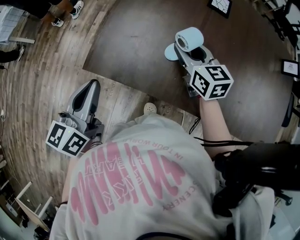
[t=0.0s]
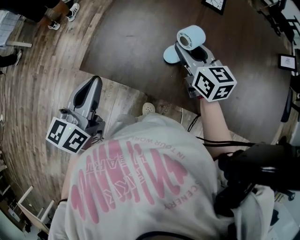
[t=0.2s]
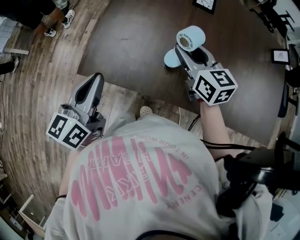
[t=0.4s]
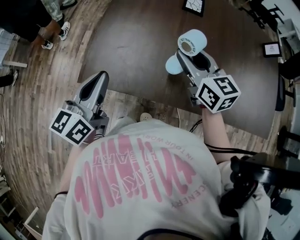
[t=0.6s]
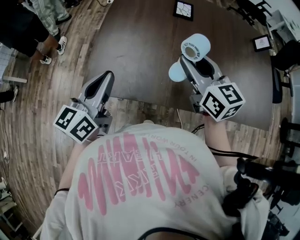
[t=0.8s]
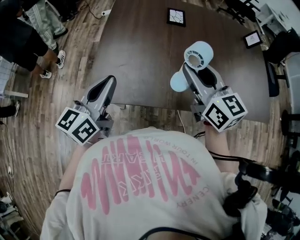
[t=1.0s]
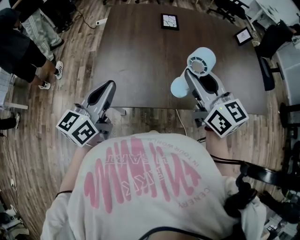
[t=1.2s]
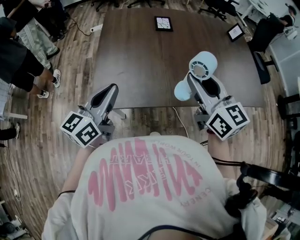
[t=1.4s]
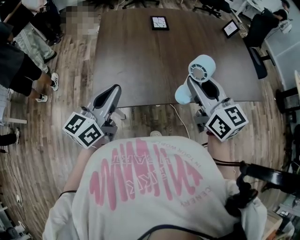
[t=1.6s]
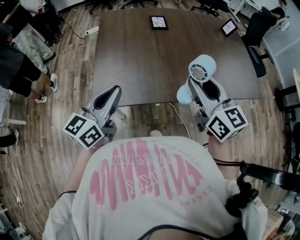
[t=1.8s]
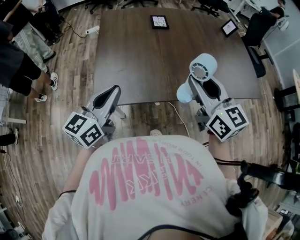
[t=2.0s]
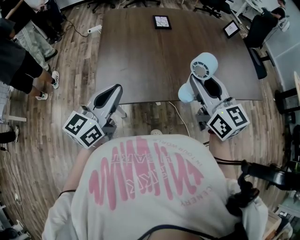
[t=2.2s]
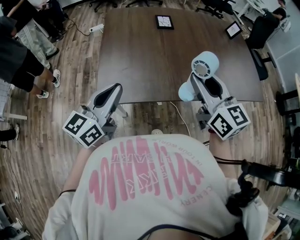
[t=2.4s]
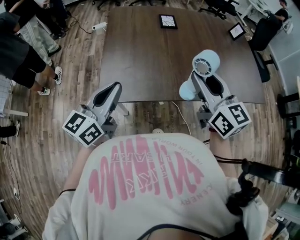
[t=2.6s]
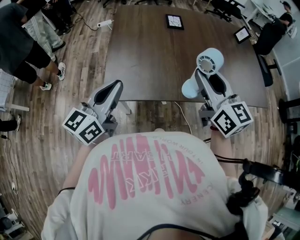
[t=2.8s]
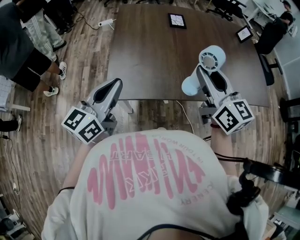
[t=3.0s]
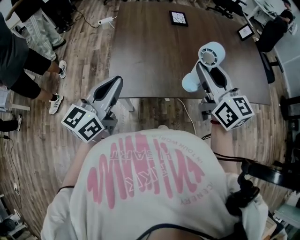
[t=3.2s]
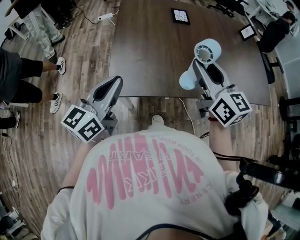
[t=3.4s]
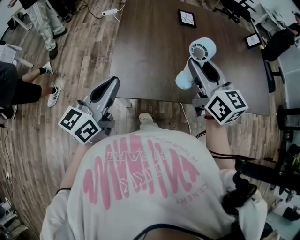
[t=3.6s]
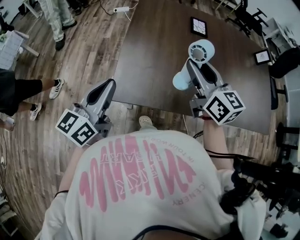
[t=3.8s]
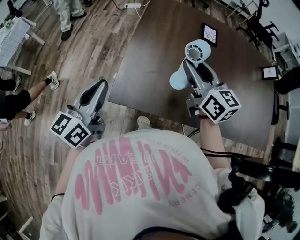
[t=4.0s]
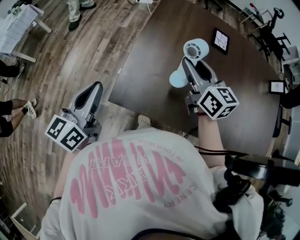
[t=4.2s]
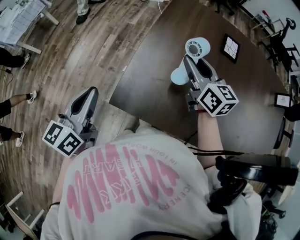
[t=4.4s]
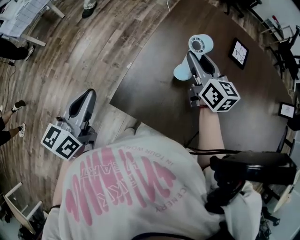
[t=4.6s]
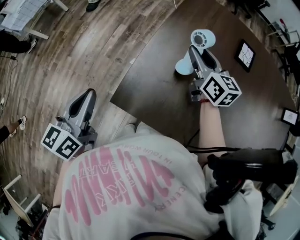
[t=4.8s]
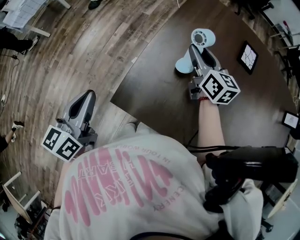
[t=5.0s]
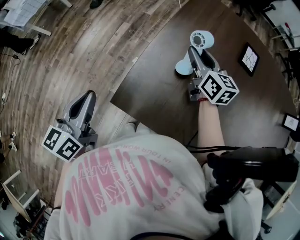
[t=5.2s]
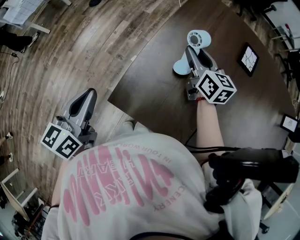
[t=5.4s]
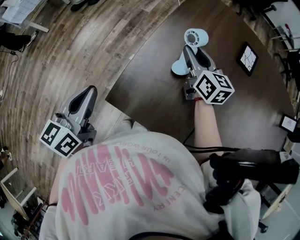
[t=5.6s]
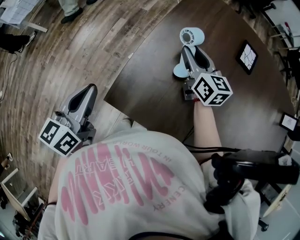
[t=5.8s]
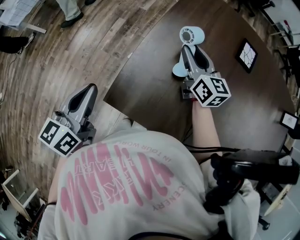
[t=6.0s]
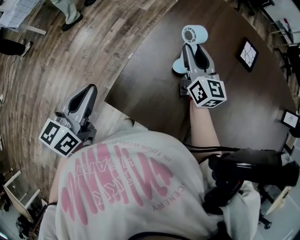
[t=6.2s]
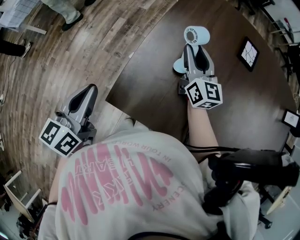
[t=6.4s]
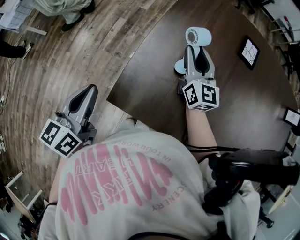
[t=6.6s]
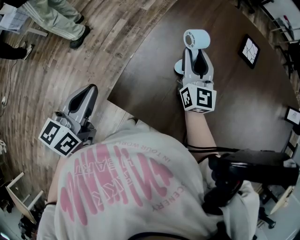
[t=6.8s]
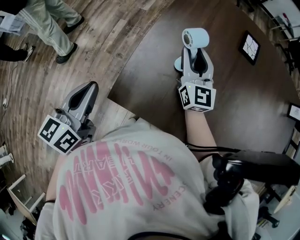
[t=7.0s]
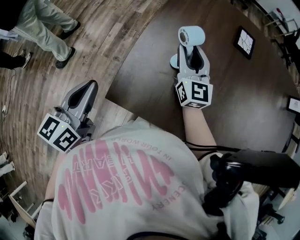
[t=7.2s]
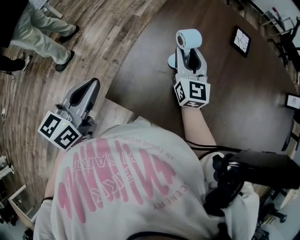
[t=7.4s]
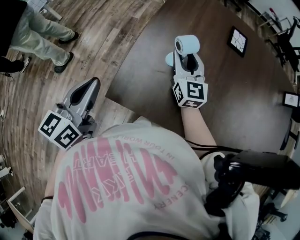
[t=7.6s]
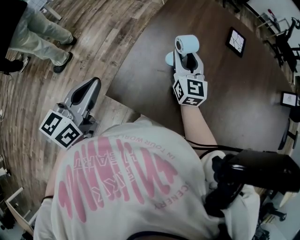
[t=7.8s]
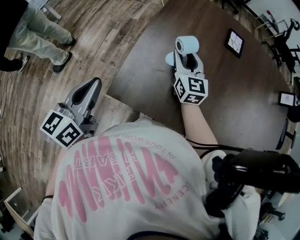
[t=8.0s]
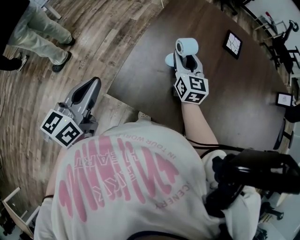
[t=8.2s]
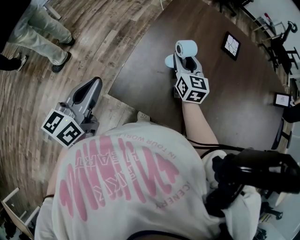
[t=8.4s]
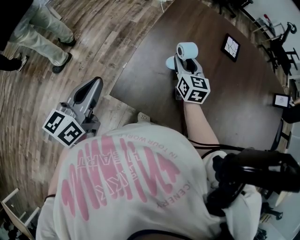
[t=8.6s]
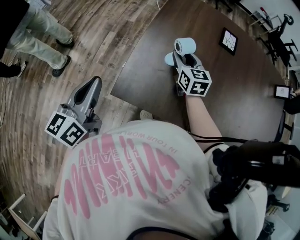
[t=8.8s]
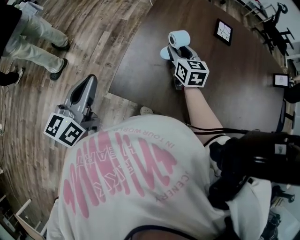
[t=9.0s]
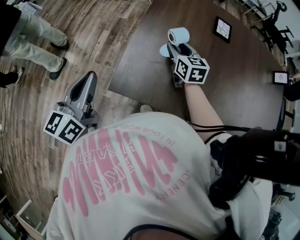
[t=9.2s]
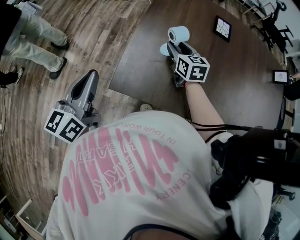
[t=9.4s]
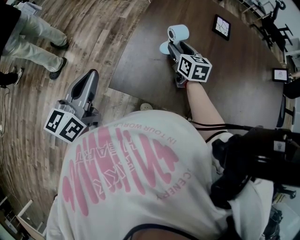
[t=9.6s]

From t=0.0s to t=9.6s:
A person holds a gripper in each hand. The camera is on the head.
From t=0.0s to t=1.6s: The right gripper changes place by roughly 30 cm, and rotates approximately 30 degrees, while the left gripper is displaced upward by roughly 10 cm, and swivels some 40 degrees.
From t=1.6s to t=3.2s: The left gripper is displaced to the left by about 5 cm, while the right gripper ends up roughly 5 cm from where it was.
From t=3.2s to t=4.8s: The right gripper changes place by about 40 cm, and swivels roughly 30 degrees, while the left gripper moves some 15 cm, and turns by about 40 degrees.
From t=4.8s to t=6.4s: The grippers move only a little.
From t=6.4s to t=8.0s: The right gripper travels backward by approximately 5 cm.
From t=8.0s to t=9.6s: The right gripper turns by roughly 20 degrees.

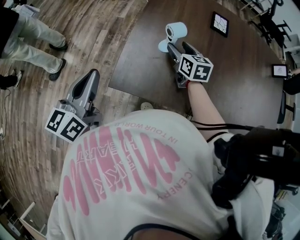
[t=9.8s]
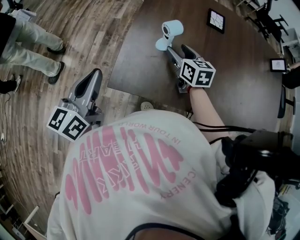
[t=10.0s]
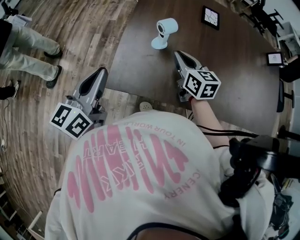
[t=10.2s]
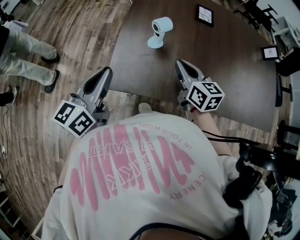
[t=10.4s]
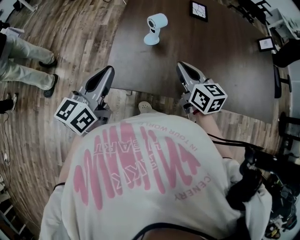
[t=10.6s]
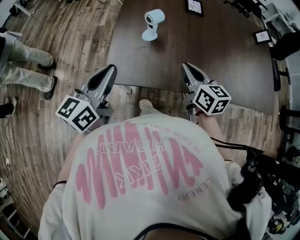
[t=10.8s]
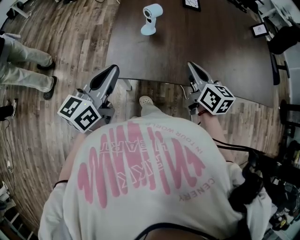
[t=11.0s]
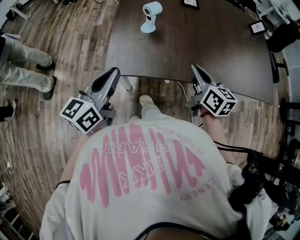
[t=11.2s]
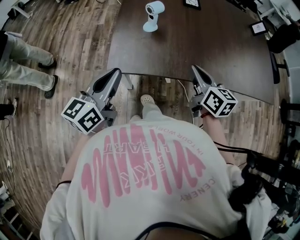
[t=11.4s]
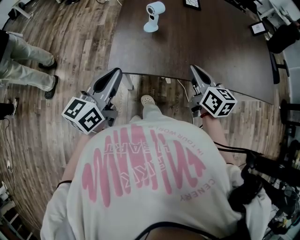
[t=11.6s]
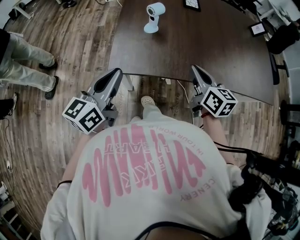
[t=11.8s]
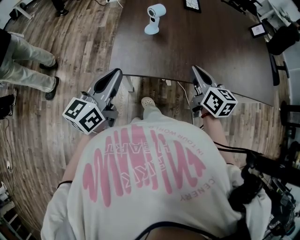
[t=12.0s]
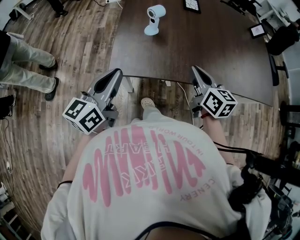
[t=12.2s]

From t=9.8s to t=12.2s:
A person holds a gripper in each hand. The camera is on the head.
From t=9.8s to t=11.0s: The right gripper moves backward, about 25 cm, and closes up, while the left gripper heads to the right and backward, covering some 10 cm, and turns by approximately 20 degrees.
From t=11.0s to t=12.2s: There are only small adjustments of the grippers.

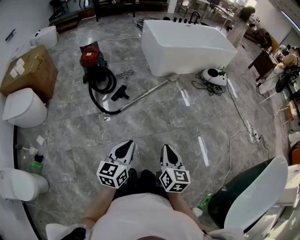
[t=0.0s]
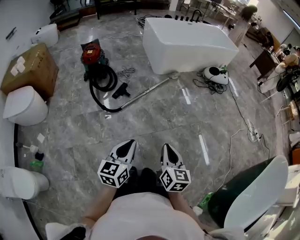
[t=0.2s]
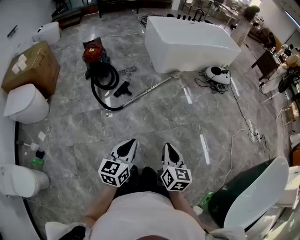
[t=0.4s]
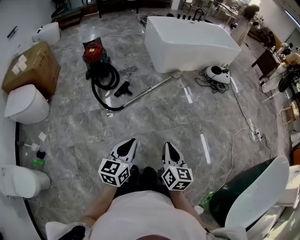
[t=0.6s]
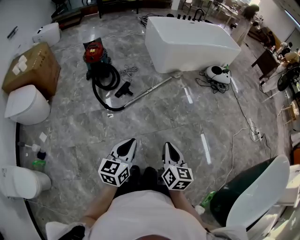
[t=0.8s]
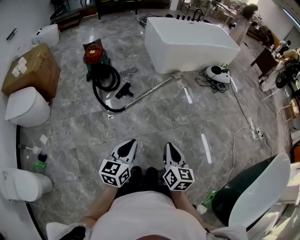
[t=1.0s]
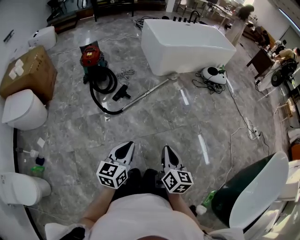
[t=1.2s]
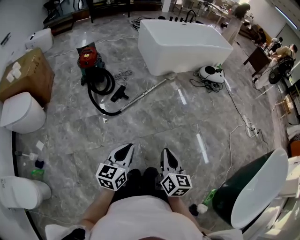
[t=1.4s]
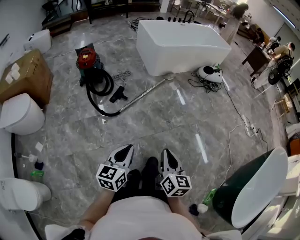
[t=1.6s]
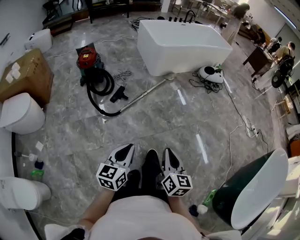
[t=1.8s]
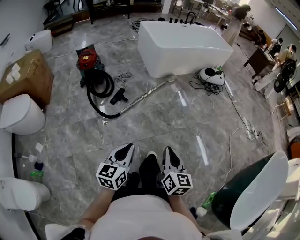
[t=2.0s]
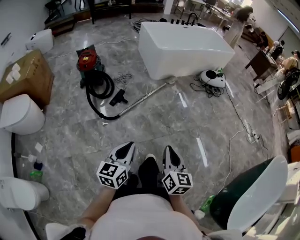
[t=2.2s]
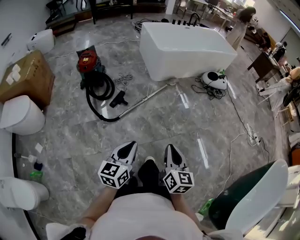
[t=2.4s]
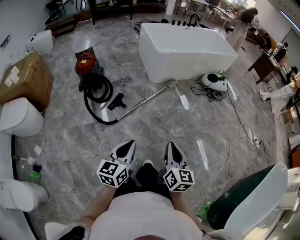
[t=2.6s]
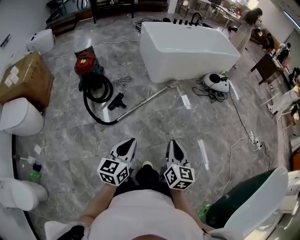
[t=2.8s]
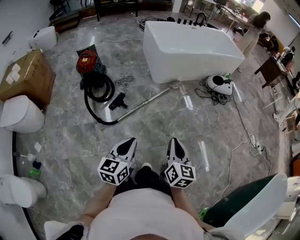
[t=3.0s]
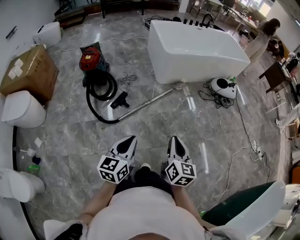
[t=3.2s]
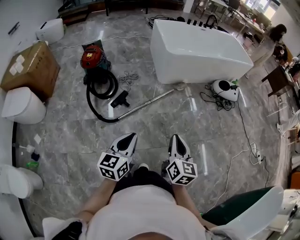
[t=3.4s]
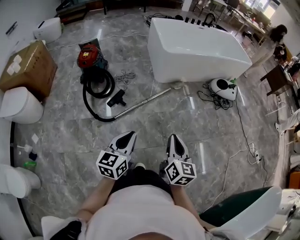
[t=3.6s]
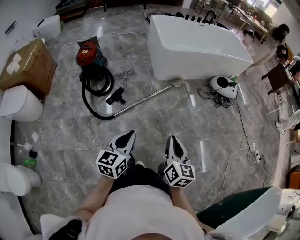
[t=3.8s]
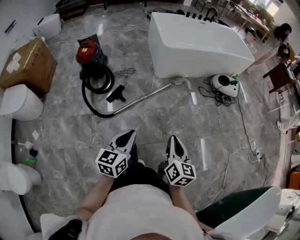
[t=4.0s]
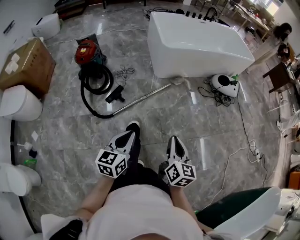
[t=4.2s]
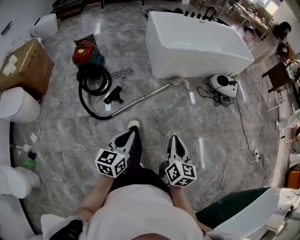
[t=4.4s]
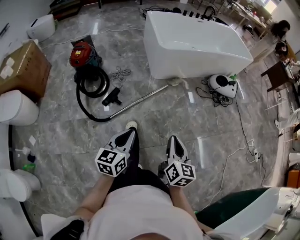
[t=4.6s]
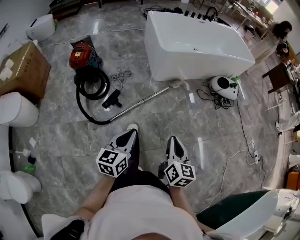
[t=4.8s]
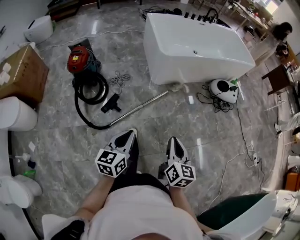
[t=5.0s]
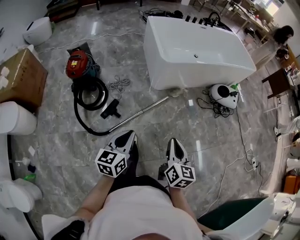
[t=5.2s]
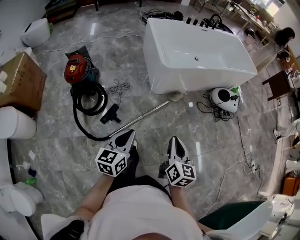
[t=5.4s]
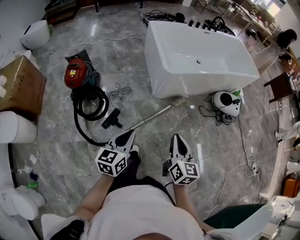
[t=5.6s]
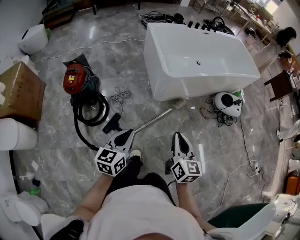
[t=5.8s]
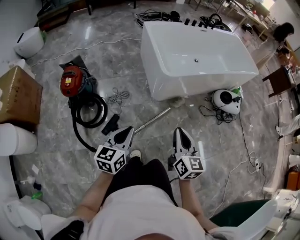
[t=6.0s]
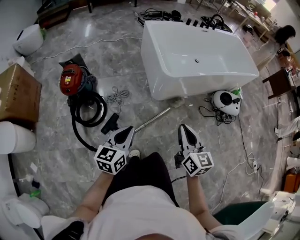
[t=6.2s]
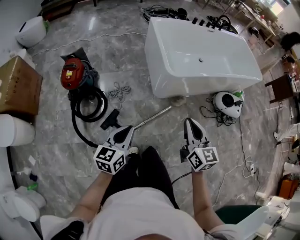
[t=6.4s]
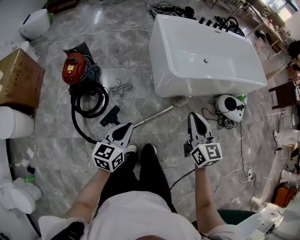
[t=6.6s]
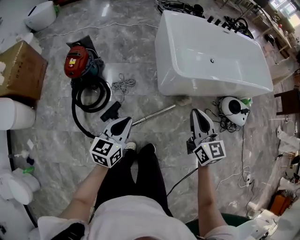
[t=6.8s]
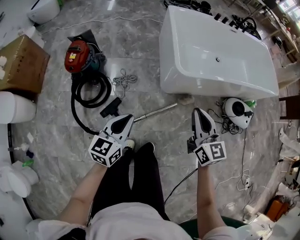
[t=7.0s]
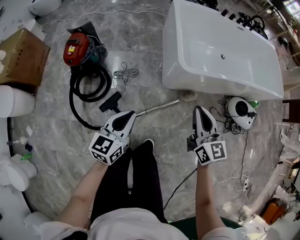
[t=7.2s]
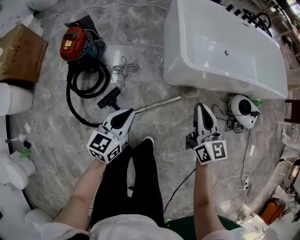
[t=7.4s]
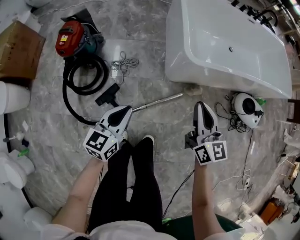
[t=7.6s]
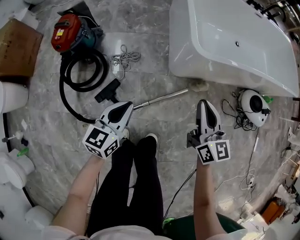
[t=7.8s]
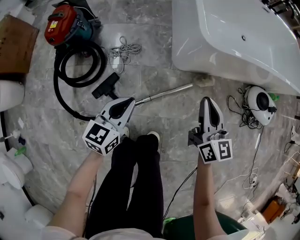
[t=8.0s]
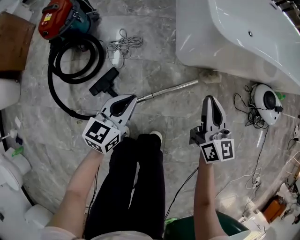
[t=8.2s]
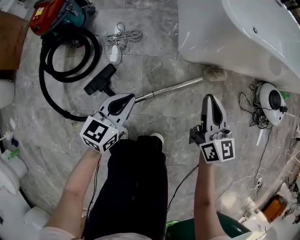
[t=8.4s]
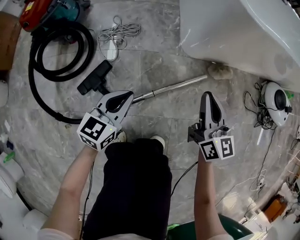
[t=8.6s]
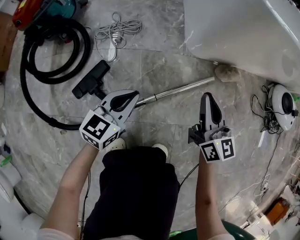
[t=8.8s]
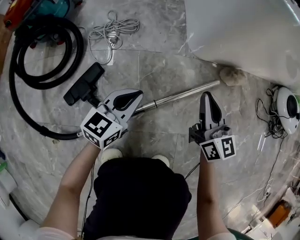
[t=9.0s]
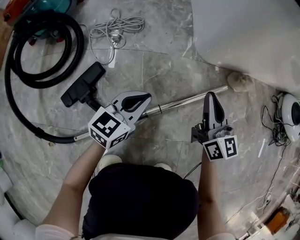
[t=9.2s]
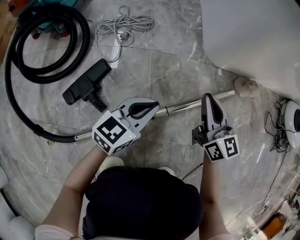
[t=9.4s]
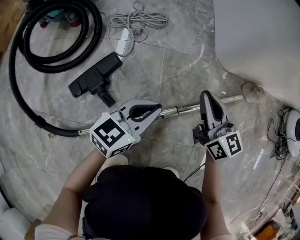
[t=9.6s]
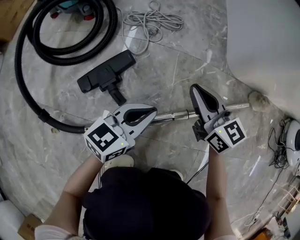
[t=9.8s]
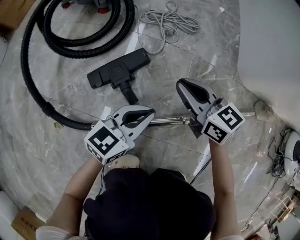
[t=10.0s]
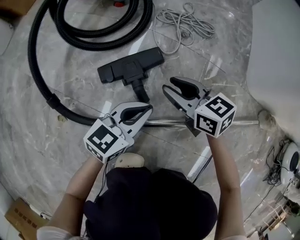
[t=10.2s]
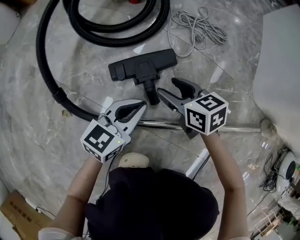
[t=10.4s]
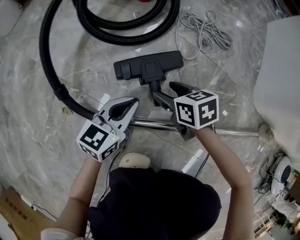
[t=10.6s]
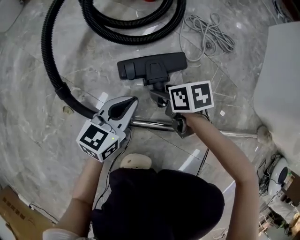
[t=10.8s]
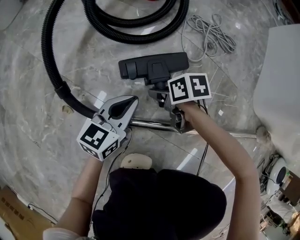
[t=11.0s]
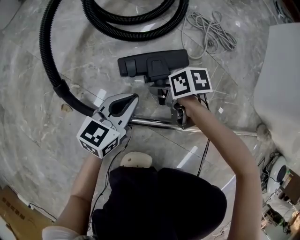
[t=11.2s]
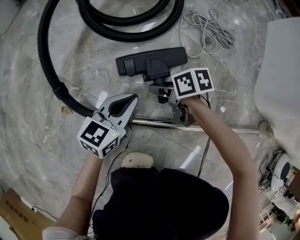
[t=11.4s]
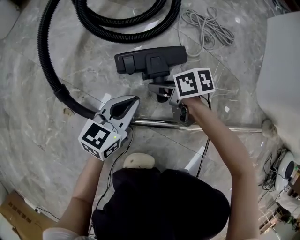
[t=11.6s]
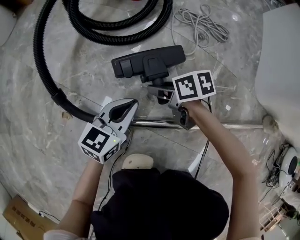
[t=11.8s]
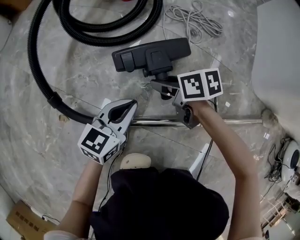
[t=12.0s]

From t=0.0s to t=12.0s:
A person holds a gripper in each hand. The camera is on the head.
From t=0.0s to t=1.6s: The grippers stay close to where they were, moving slightly.
From t=1.6s to t=3.0s: Both grippers move forward, about 25 cm.
From t=3.0s to t=4.4s: The right gripper is displaced forward and to the right by roughly 10 cm. Meanwhile the left gripper goes approximately 10 cm forward.
From t=4.4s to t=6.0s: Both grippers travel together forward, approximately 35 cm.
From t=6.0s to t=7.6s: The left gripper goes approximately 20 cm downward and forward; the right gripper goes approximately 25 cm forward and downward, and turns by approximately 20 degrees.
From t=7.6s to t=9.0s: The grippers both shift downward by some 50 cm.
From t=9.0s to t=10.4s: The left gripper ends up about 25 cm from where it was, and rotates approximately 20 degrees, while the right gripper changes place by about 40 cm, points its fingers approximately 30 degrees further downward, and opens.
From t=10.4s to t=12.0s: The right gripper changes its angle by some 30 degrees.
